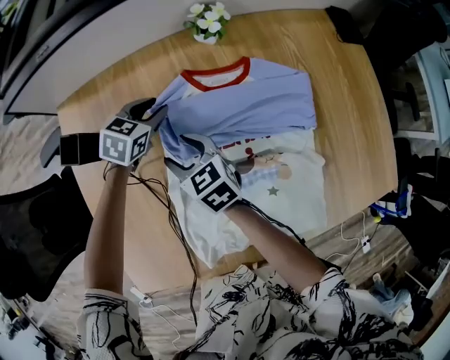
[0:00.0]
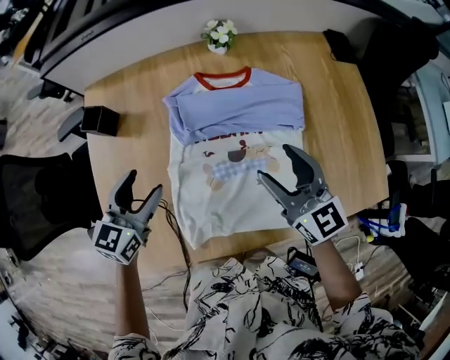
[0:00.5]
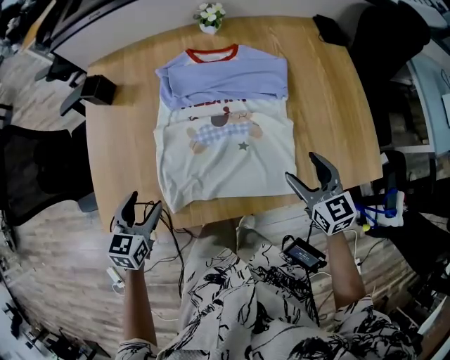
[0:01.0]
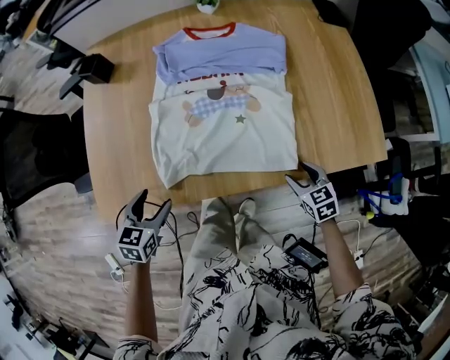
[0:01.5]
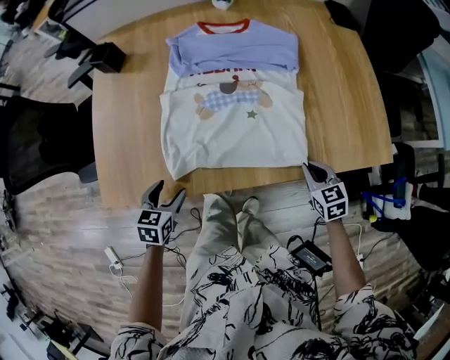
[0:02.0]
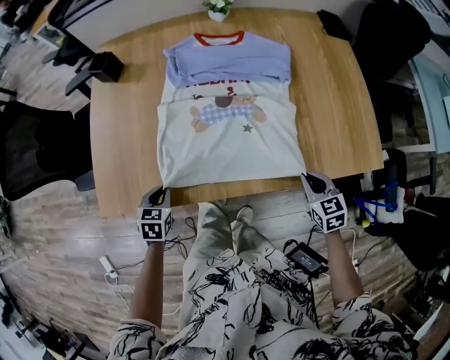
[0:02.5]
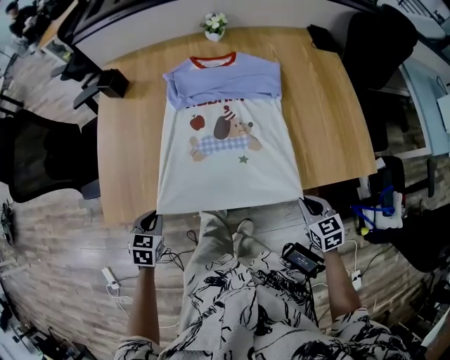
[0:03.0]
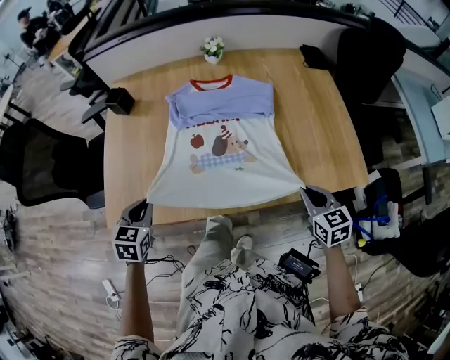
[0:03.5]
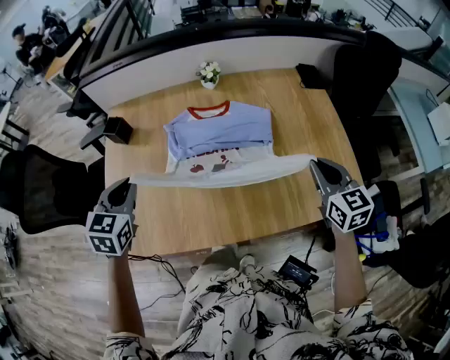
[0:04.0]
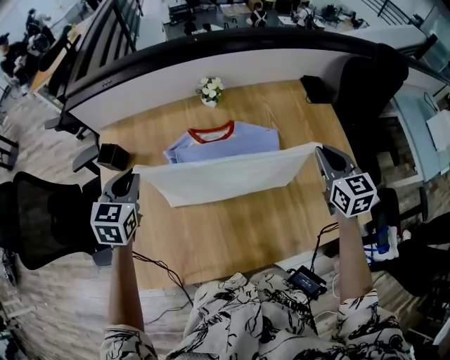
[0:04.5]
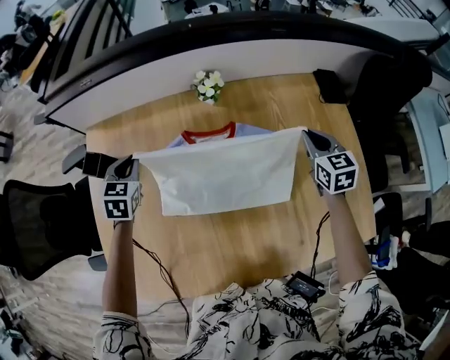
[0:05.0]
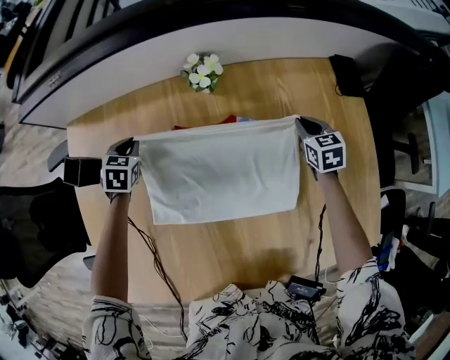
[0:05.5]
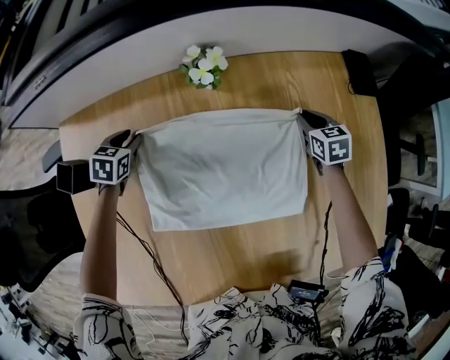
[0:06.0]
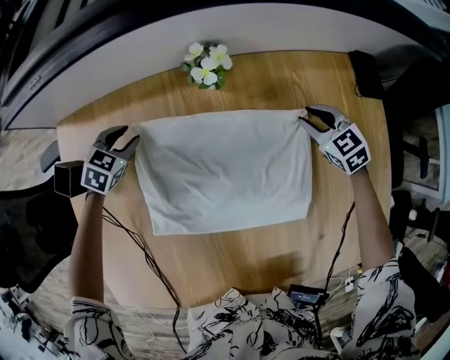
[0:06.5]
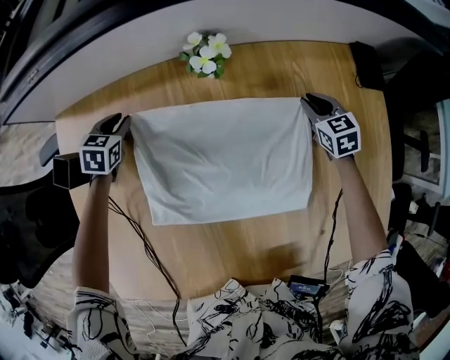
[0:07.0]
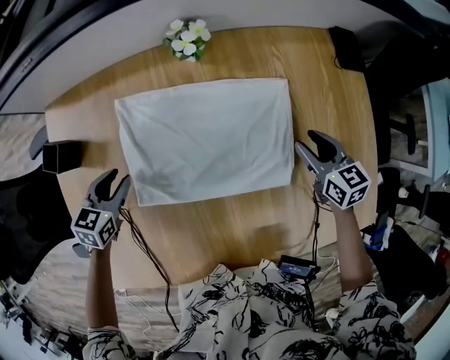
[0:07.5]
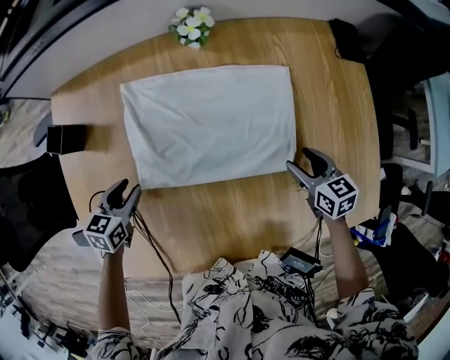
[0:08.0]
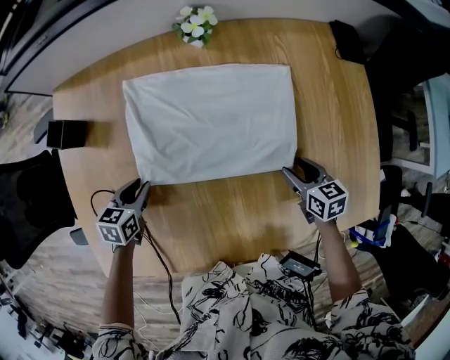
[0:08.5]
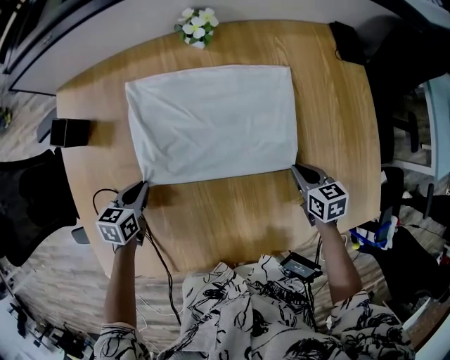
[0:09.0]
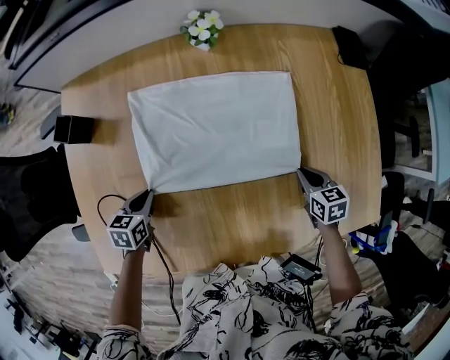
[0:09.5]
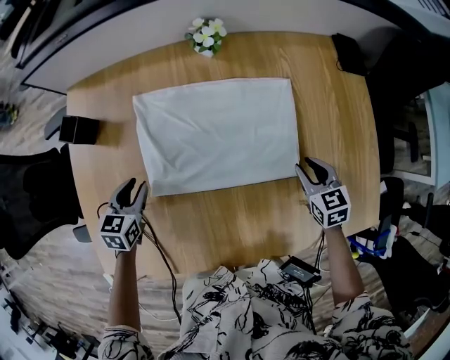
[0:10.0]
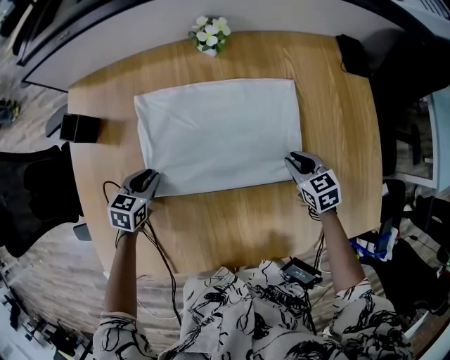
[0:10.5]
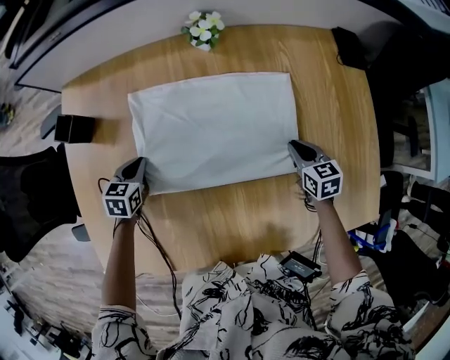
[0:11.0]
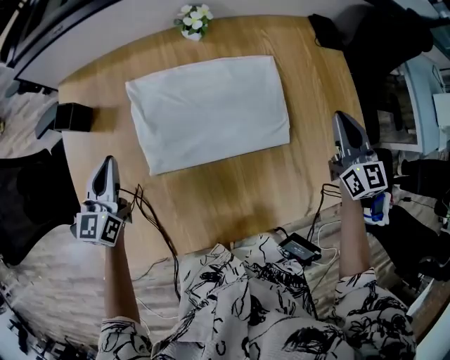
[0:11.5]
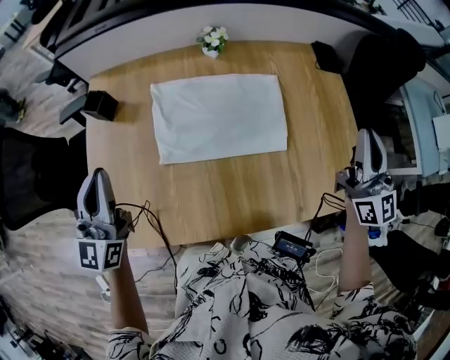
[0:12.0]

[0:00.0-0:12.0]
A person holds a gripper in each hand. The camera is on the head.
0:00.0 to 0:02.0: The left gripper moves backward, roughly 50 cm, and rotates about 30 degrees. The right gripper goes some 50 cm to the right and backward, and closes.
0:02.0 to 0:04.0: Both grippers travel together upward and forward, some 35 cm. The left gripper changes its angle by some 20 degrees, and closes up, while the right gripper turns by some 20 degrees.
0:04.0 to 0:06.0: Both grippers are carried forward, about 40 cm. The two grippers go roughly 30 cm downward. The left gripper turns by about 30 degrees, while the right gripper turns by about 30 degrees.
0:06.0 to 0:08.0: The grippers both shift backward by about 25 cm. The right gripper opens its fingers.
0:10.0 to 0:12.0: The two grippers go approximately 35 cm upward. The left gripper points its fingers roughly 50 degrees further upward. Meanwhile the right gripper angles its fingers upward, by roughly 60 degrees.

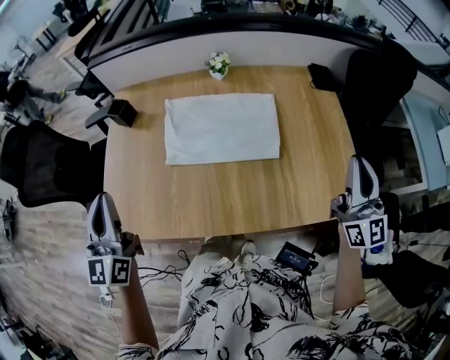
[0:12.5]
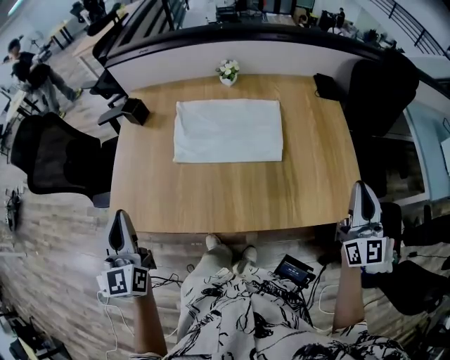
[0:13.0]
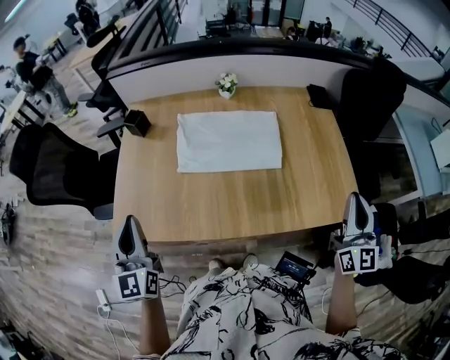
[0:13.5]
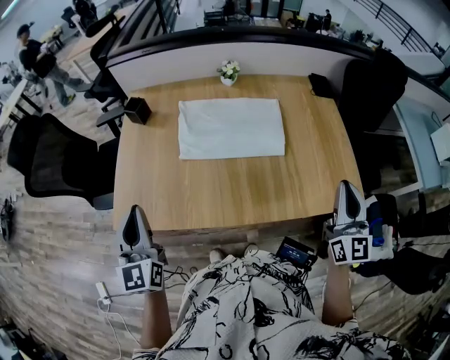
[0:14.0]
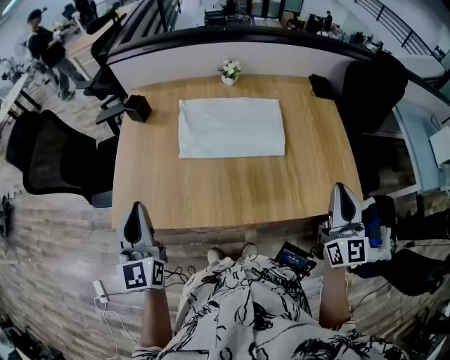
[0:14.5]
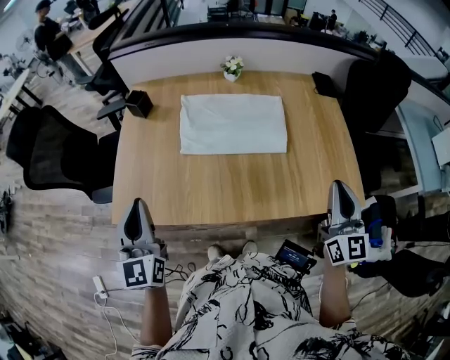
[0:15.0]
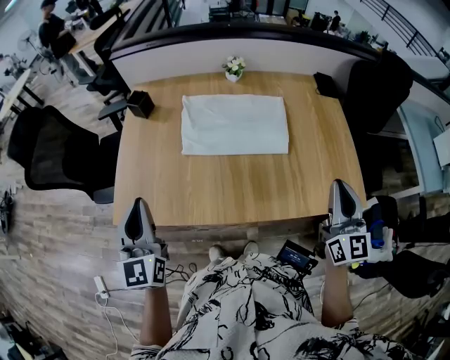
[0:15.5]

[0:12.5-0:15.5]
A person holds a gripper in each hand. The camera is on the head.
0:12.5 to 0:14.0: The left gripper shifts approximately 10 cm backward; the right gripper goes approximately 10 cm backward and to the left.
0:14.0 to 0:15.5: The grippers move only a little.

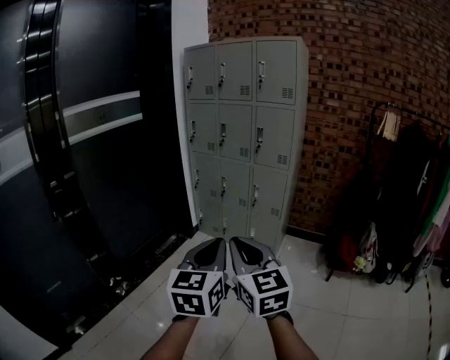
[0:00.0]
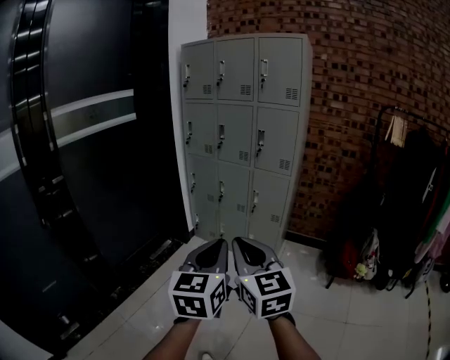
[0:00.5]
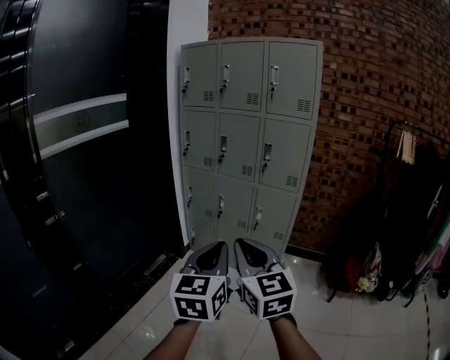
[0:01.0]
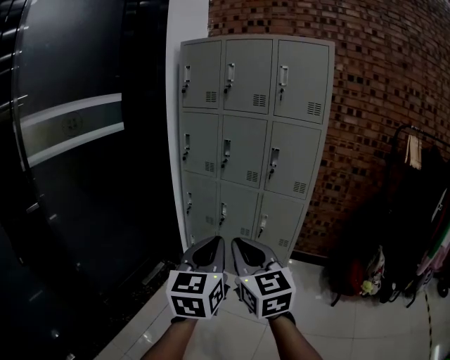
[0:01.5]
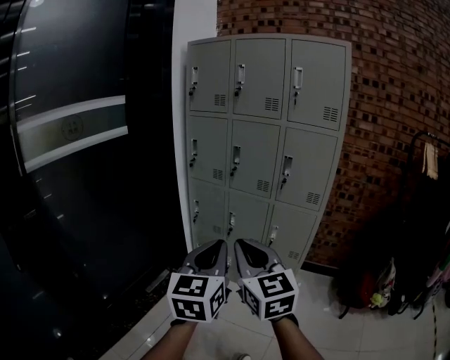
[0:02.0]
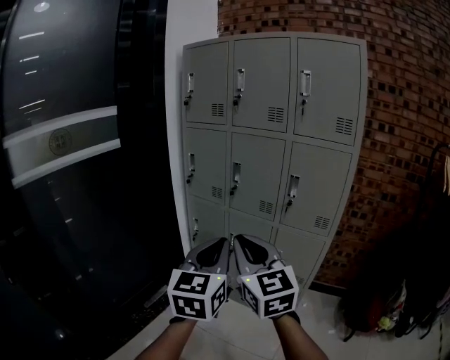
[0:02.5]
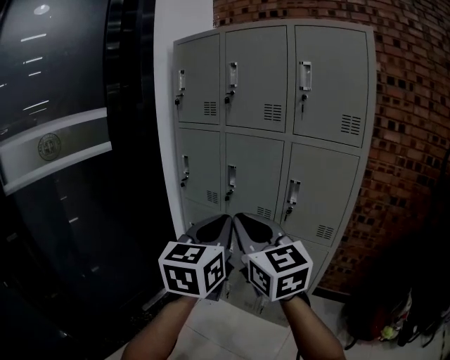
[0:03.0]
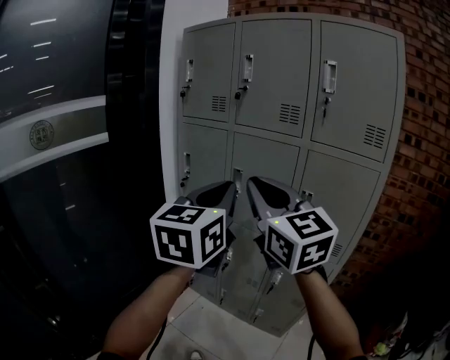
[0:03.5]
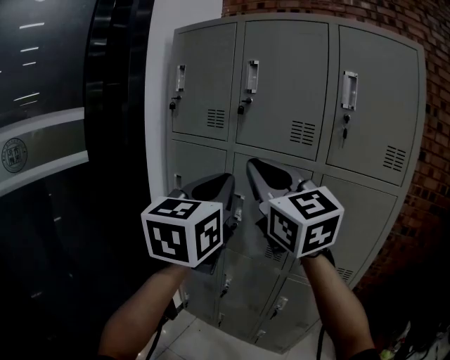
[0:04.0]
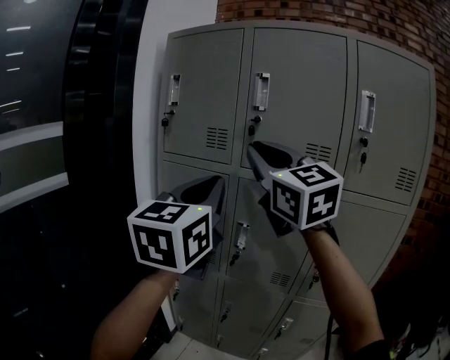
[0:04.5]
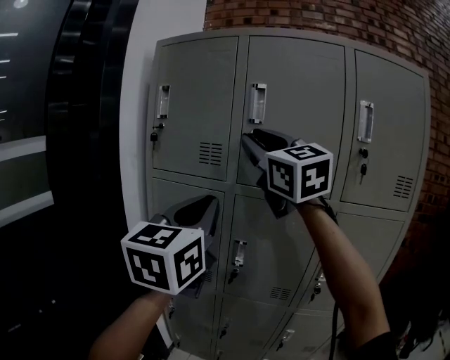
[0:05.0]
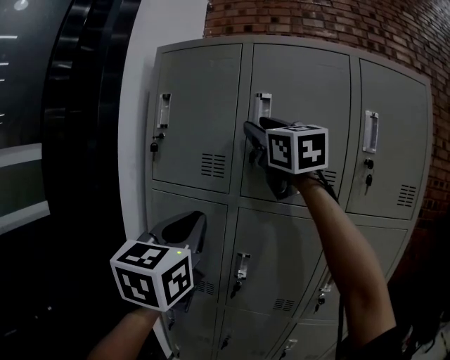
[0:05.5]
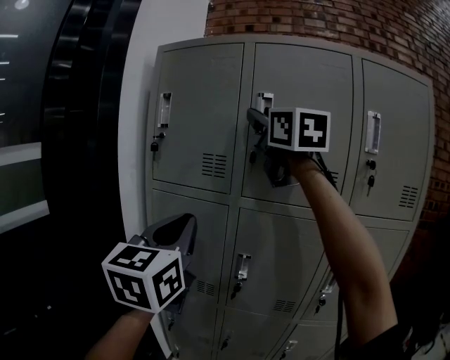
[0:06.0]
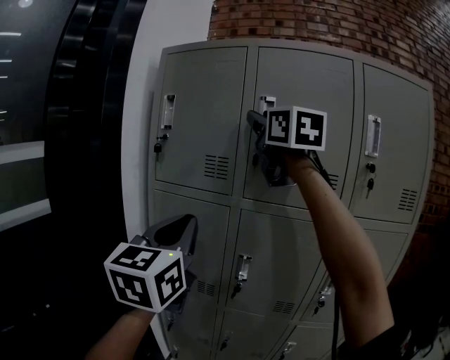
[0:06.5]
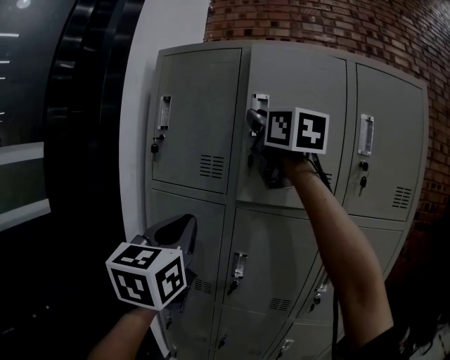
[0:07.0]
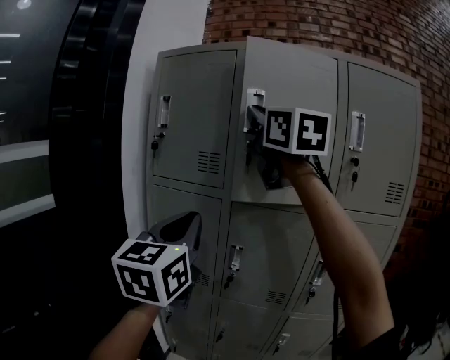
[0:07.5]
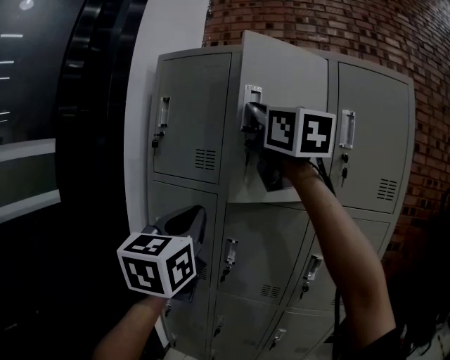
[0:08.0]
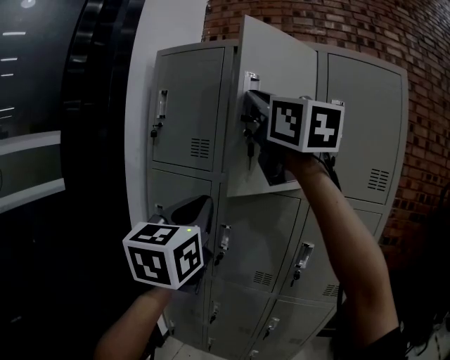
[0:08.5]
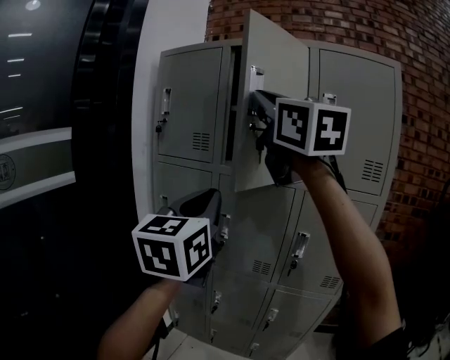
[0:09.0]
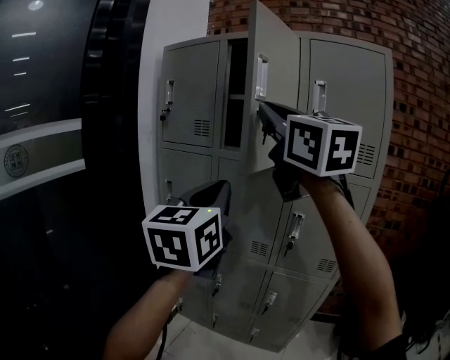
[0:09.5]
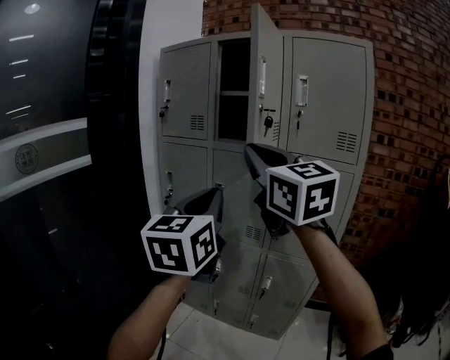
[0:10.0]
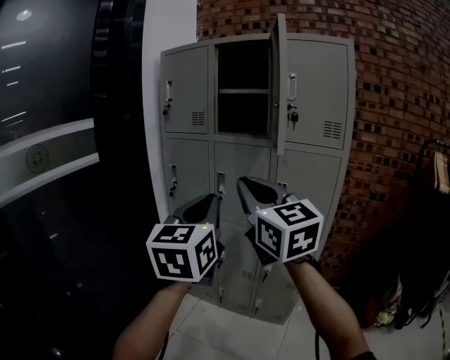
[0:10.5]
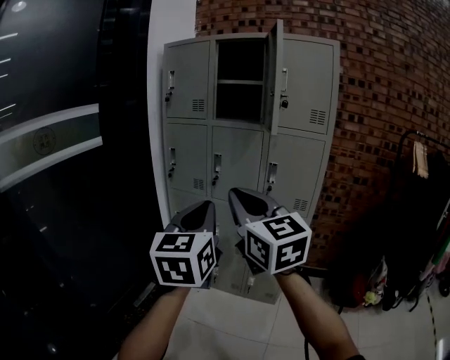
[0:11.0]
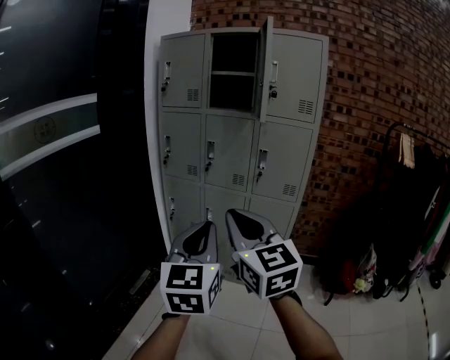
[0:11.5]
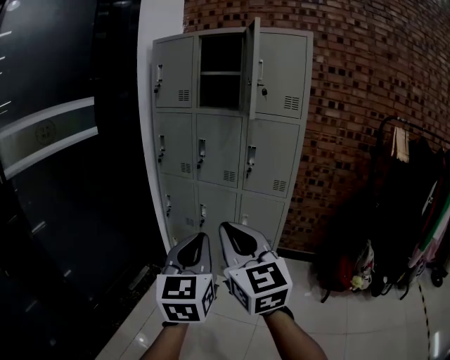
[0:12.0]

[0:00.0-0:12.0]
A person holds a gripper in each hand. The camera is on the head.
0:00.0 to 0:02.0: The two grippers travel together, forward, roughly 40 cm.
0:02.0 to 0:04.0: The pair of grippers is taken forward, about 40 cm. Both grippers travel together upward, approximately 20 cm.
0:04.0 to 0:06.0: The left gripper travels forward and to the left by approximately 20 cm; the right gripper shifts some 30 cm forward and upward, and opens up.
0:06.0 to 0:08.0: The left gripper is displaced backward by approximately 5 cm; the right gripper is displaced backward by approximately 10 cm, and closes its fingers.
0:08.0 to 0:10.0: The right gripper goes about 30 cm backward and downward. The left gripper goes about 25 cm backward and to the right.
0:10.0 to 0:12.0: Both grippers travel together backward and downward, roughly 40 cm.
